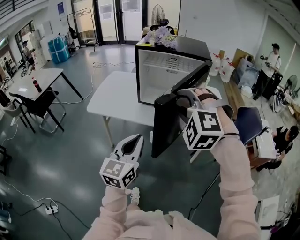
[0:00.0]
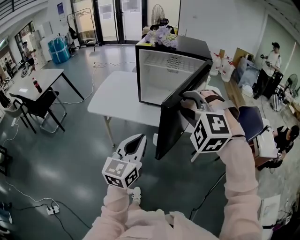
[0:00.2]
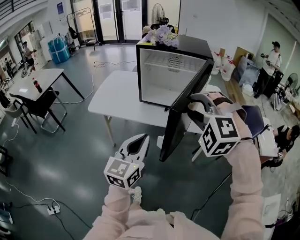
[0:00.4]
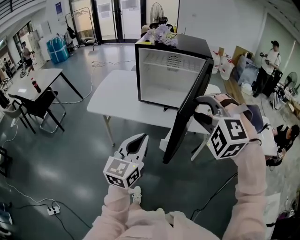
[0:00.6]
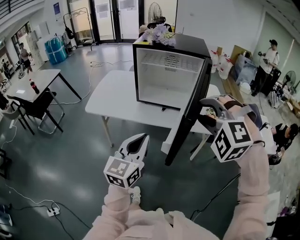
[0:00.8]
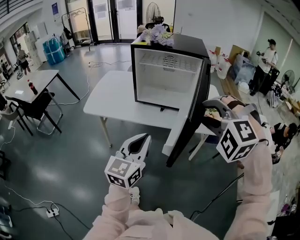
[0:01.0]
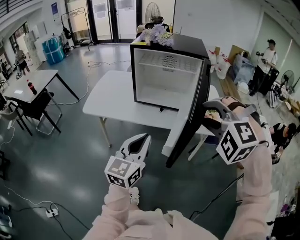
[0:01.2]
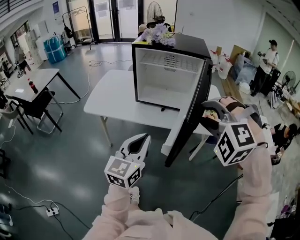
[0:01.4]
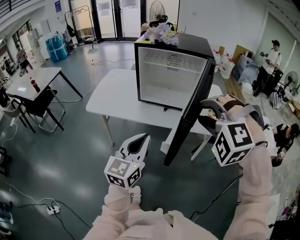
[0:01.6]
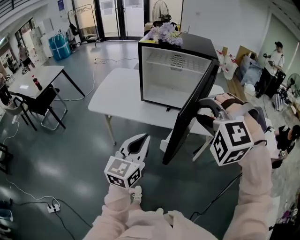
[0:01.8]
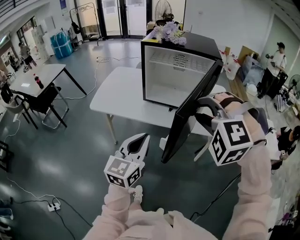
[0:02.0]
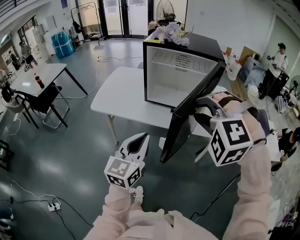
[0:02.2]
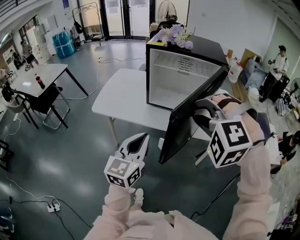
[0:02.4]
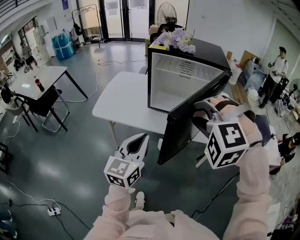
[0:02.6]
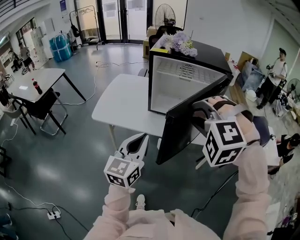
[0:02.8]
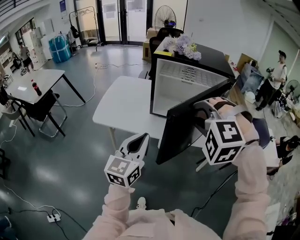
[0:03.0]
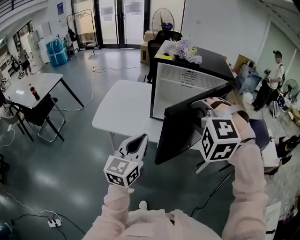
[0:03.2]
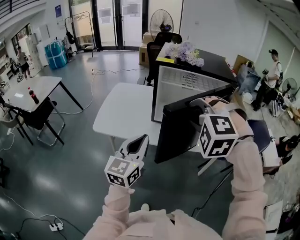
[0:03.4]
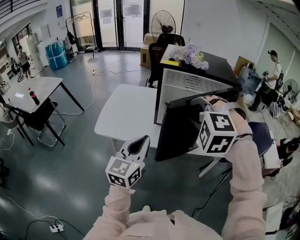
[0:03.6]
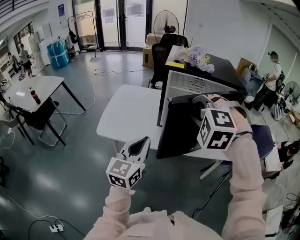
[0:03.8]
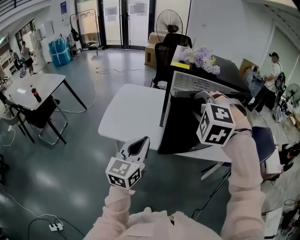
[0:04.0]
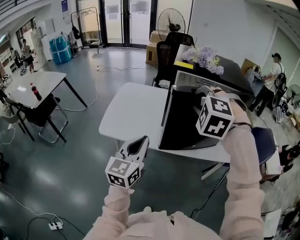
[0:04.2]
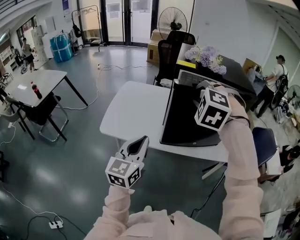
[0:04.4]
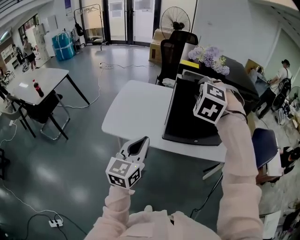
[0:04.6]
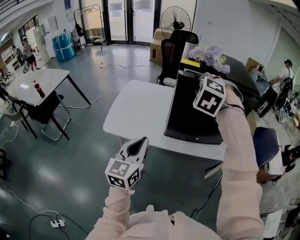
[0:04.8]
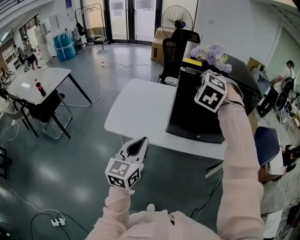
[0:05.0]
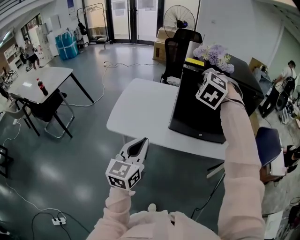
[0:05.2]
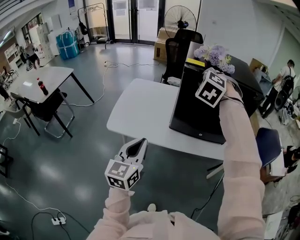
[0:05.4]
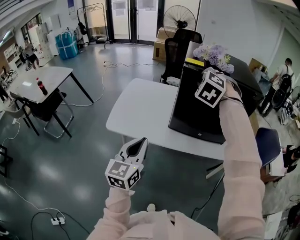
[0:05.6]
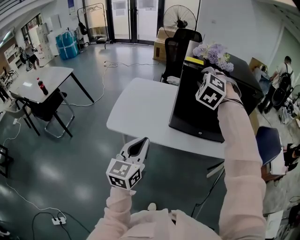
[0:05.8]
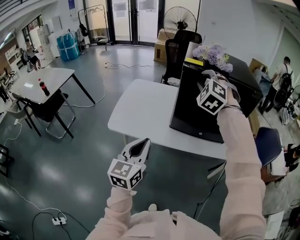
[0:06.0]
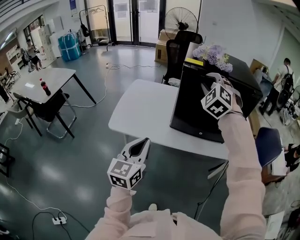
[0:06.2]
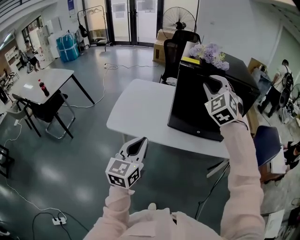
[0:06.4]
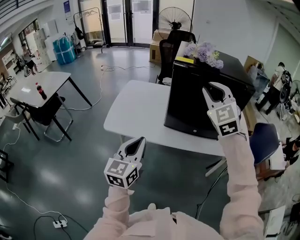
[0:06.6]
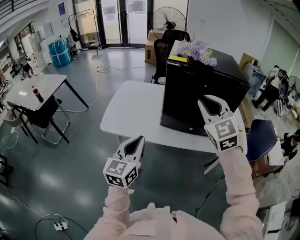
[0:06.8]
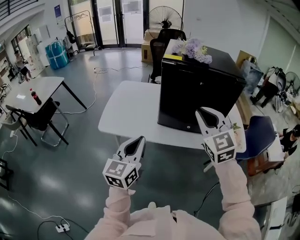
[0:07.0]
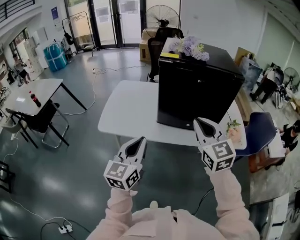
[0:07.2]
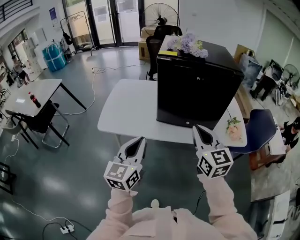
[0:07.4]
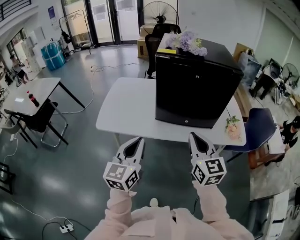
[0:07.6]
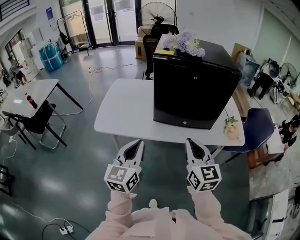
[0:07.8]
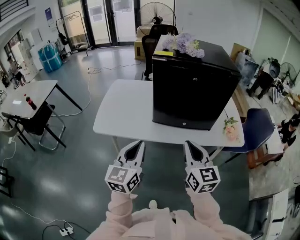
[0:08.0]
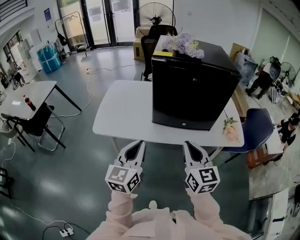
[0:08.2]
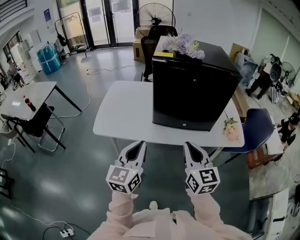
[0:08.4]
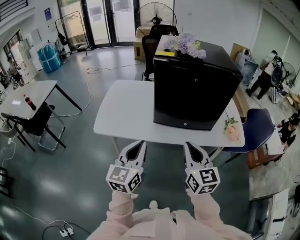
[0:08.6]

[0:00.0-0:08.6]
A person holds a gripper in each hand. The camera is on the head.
0:00.0 to 0:01.4: The right gripper goes roughly 10 cm to the right.
0:01.4 to 0:02.8: Both grippers travel together to the left and forward, about 15 cm.
0:02.8 to 0:04.4: The right gripper moves forward and to the left, some 25 cm, and swivels about 20 degrees. The left gripper moves to the left and forward, roughly 15 cm.
0:04.4 to 0:05.8: The right gripper shifts approximately 10 cm forward.
0:05.8 to 0:07.2: The left gripper is displaced to the right by roughly 5 cm; the right gripper is displaced backward and to the right by roughly 25 cm, twists approximately 60 degrees clockwise, seen from behind, and closes its fingers.
0:07.2 to 0:08.6: The right gripper is displaced downward by roughly 10 cm.

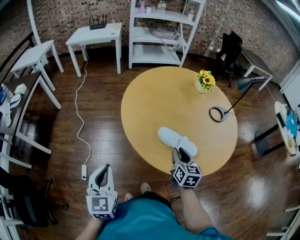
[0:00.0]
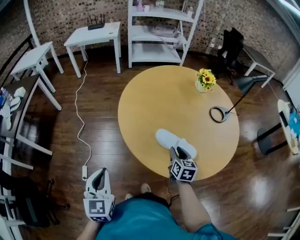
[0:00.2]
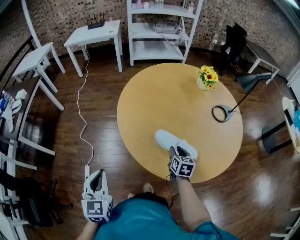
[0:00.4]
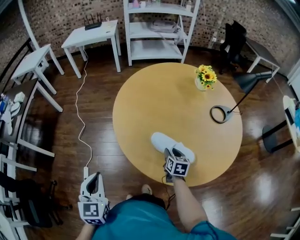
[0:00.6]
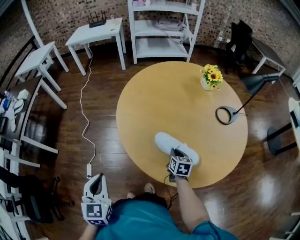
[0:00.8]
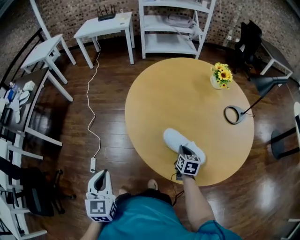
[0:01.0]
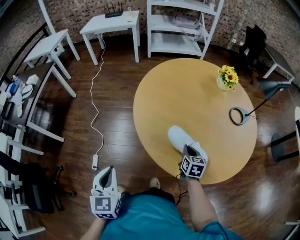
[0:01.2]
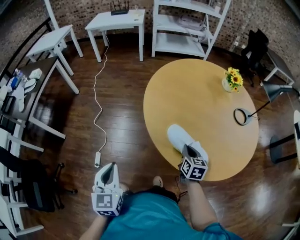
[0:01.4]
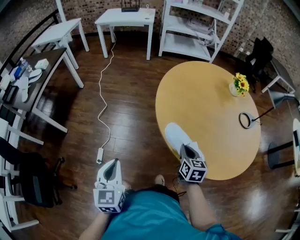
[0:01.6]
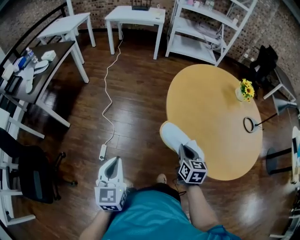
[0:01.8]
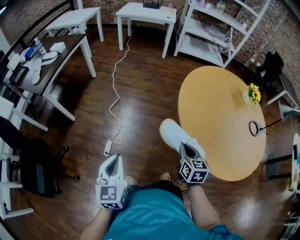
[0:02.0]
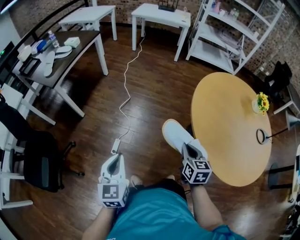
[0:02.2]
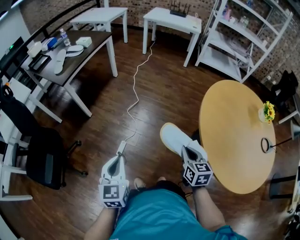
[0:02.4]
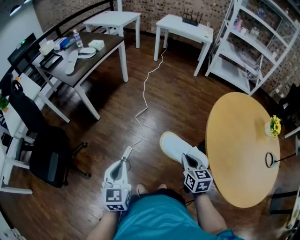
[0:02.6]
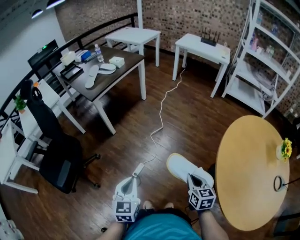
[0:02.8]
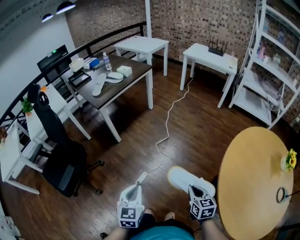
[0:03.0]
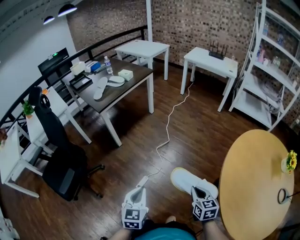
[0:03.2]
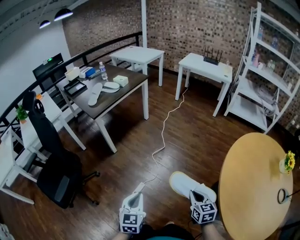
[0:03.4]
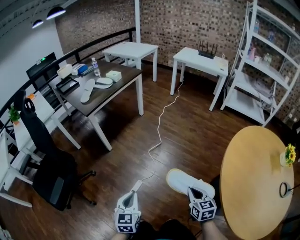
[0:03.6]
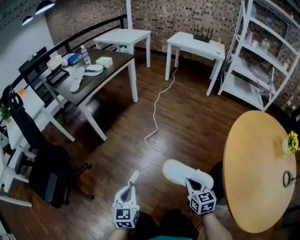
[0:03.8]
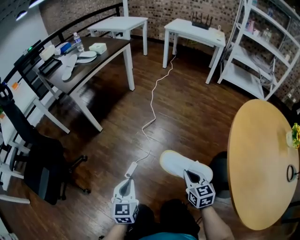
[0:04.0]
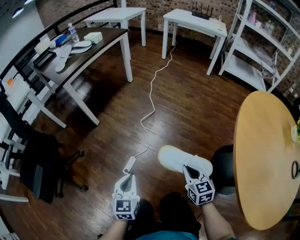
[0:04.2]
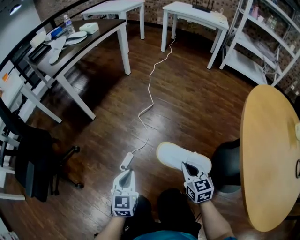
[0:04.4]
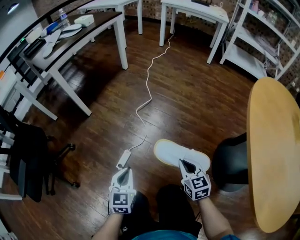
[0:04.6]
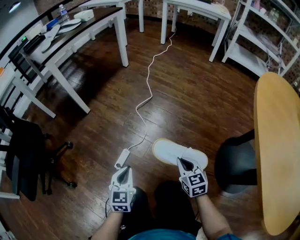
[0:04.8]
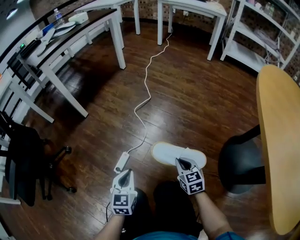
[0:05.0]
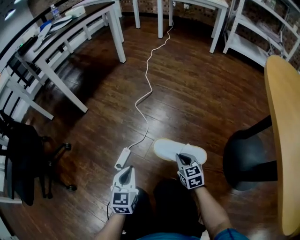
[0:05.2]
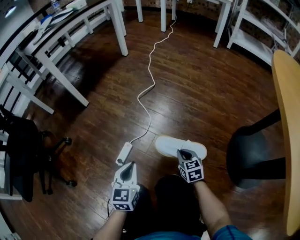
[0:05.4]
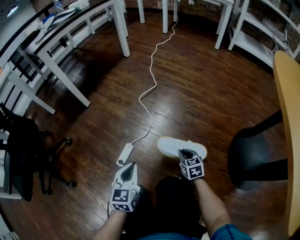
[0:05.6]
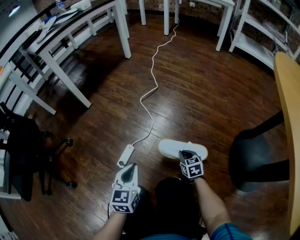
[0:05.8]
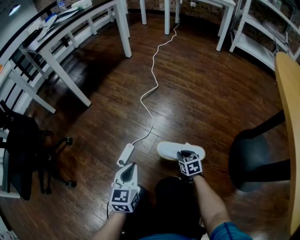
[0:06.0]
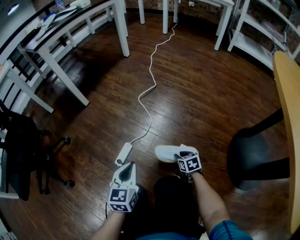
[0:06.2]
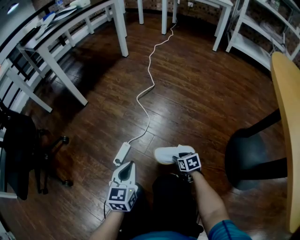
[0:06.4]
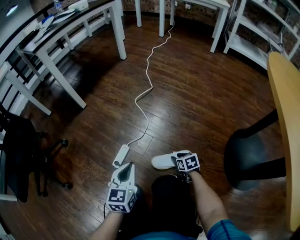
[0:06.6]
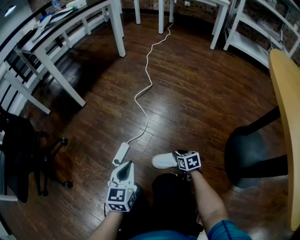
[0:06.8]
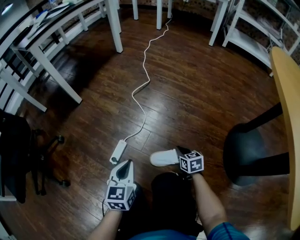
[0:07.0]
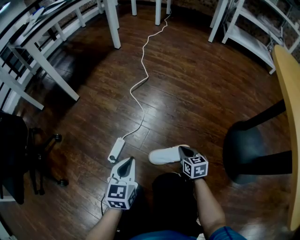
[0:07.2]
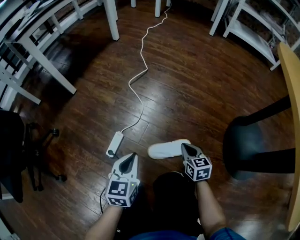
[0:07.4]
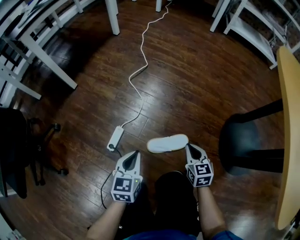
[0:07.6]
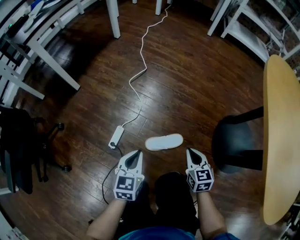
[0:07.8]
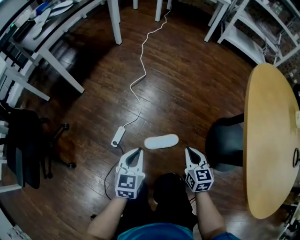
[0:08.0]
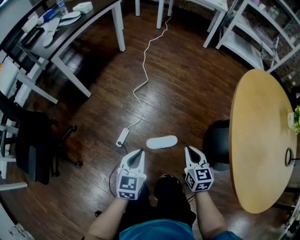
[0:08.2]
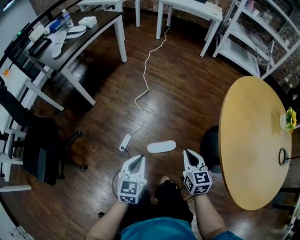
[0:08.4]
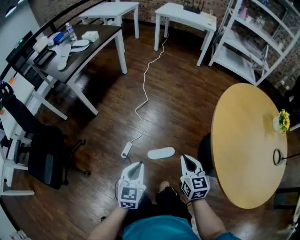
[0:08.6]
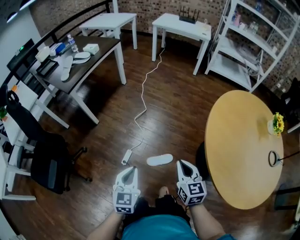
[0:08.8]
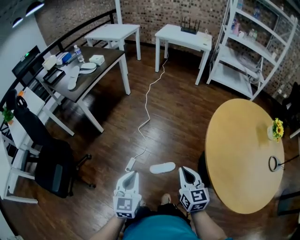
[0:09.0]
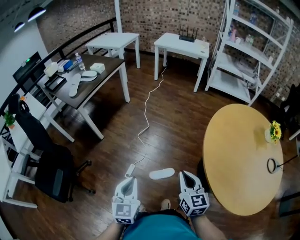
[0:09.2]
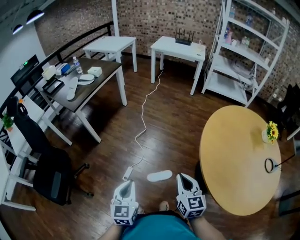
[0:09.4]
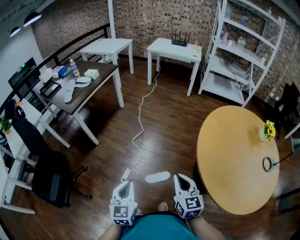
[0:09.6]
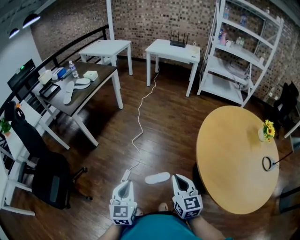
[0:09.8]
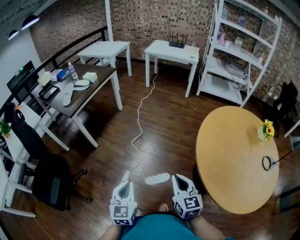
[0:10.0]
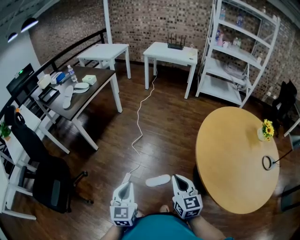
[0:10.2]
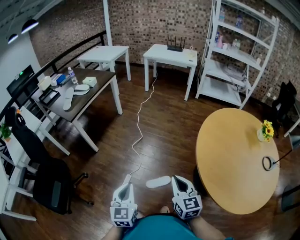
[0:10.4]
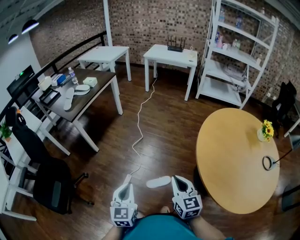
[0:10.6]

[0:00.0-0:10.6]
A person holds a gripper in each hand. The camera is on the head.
0:00.0 to 0:01.6: The two grippers go roughly 15 cm to the left. The right gripper closes.
0:01.6 to 0:03.0: The right gripper shifts by some 35 cm, and swivels about 40 degrees, while the left gripper shifts by roughly 25 cm, and swivels roughly 20 degrees.
0:03.0 to 0:04.6: The two grippers go approximately 40 cm downward.
0:04.6 to 0:06.0: The left gripper travels downward by some 20 cm, while the right gripper shifts about 35 cm downward.
0:06.0 to 0:07.6: The right gripper is displaced upward by approximately 15 cm, and opens and closes again.
0:07.6 to 0:09.0: Both grippers travel together upward, roughly 70 cm.
0:09.0 to 0:10.6: The right gripper ends up about 5 cm from where it was.

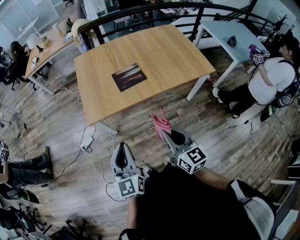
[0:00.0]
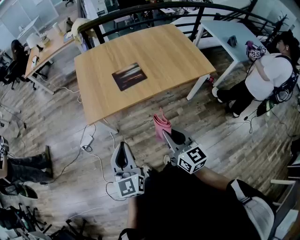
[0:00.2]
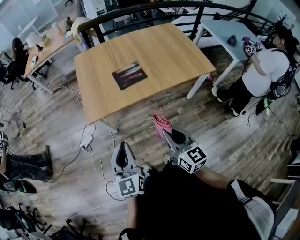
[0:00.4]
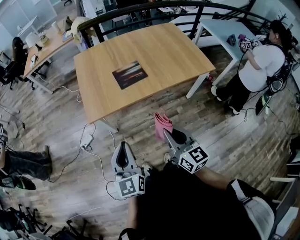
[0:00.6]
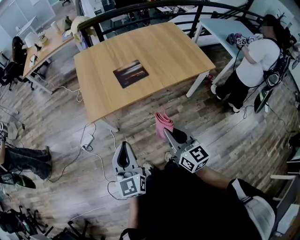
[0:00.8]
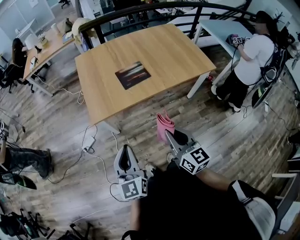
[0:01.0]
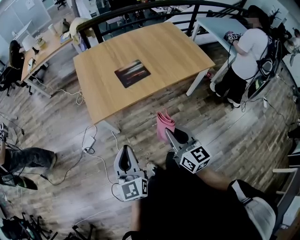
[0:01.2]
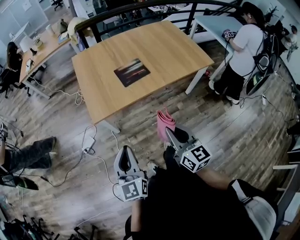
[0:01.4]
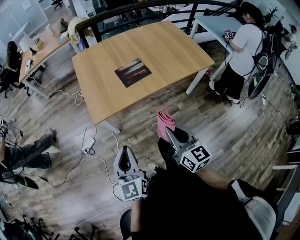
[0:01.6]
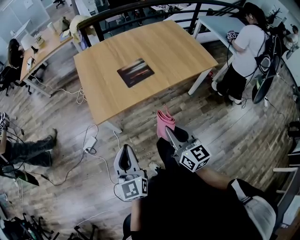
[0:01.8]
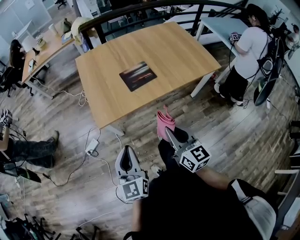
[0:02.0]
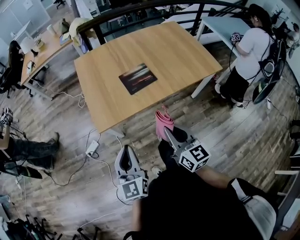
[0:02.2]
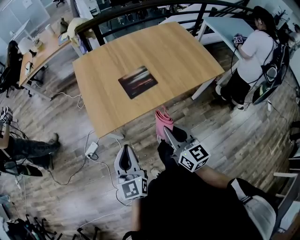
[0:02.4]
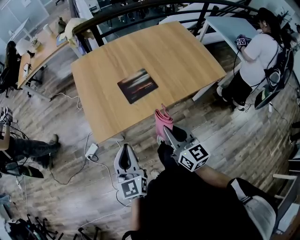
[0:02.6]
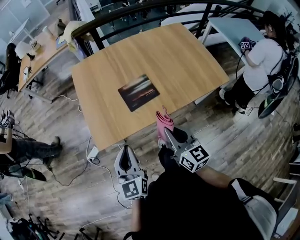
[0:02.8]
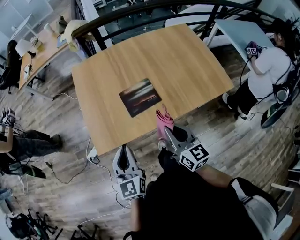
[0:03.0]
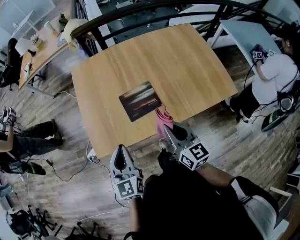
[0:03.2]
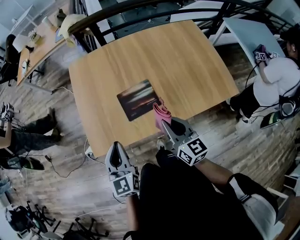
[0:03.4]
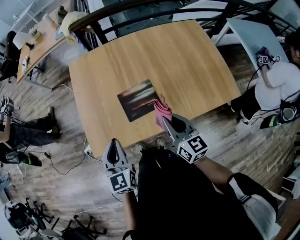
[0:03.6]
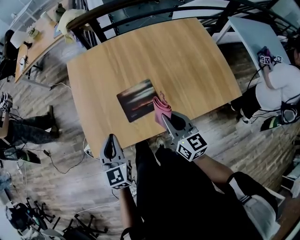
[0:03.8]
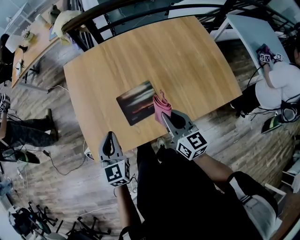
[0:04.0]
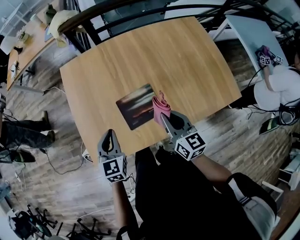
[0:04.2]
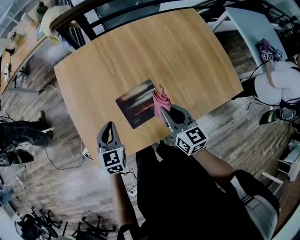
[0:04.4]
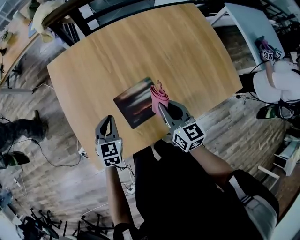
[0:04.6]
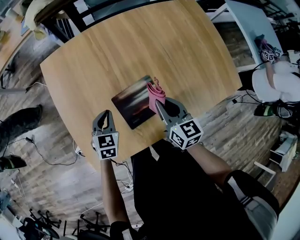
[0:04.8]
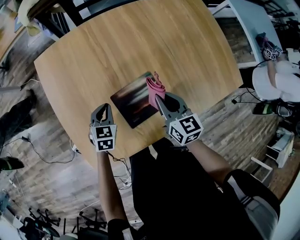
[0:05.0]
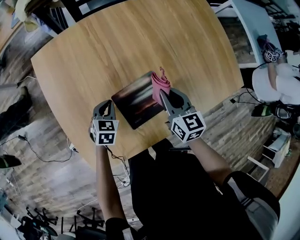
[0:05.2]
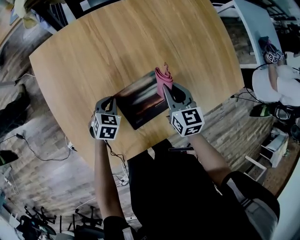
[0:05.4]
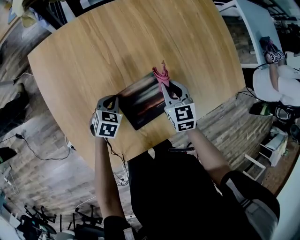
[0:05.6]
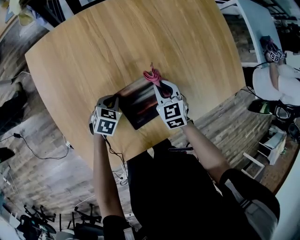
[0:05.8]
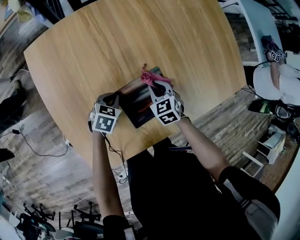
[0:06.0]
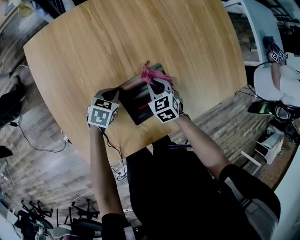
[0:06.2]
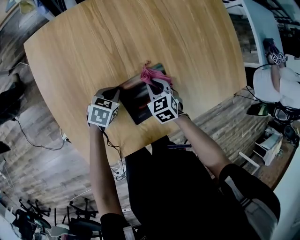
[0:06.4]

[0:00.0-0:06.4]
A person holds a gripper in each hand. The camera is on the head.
0:00.0 to 0:01.6: The grippers both shift to the left by some 10 cm.
0:01.6 to 0:03.2: Both grippers travel together forward, about 30 cm.
0:03.2 to 0:04.8: The two grippers go roughly 30 cm forward and downward. The left gripper changes its angle by some 40 degrees.
0:04.8 to 0:06.4: The left gripper goes about 15 cm downward, and rotates about 30 degrees, while the right gripper moves downward, some 20 cm, and angles its fingers downward, by about 30 degrees.
